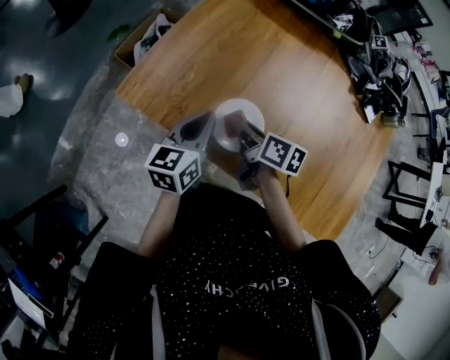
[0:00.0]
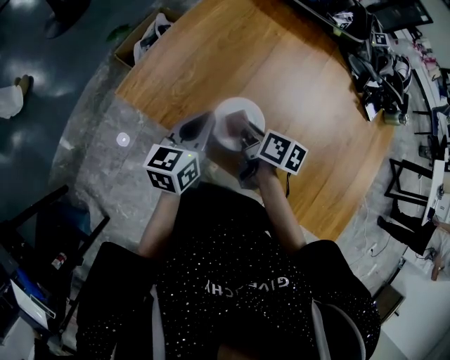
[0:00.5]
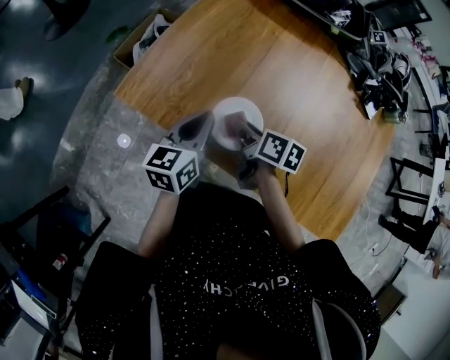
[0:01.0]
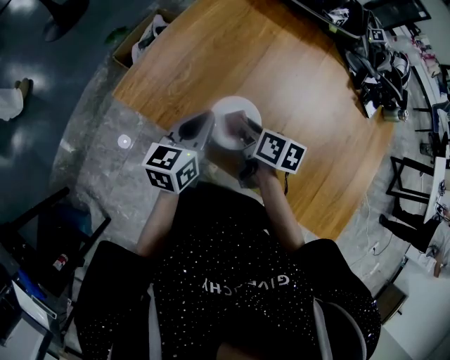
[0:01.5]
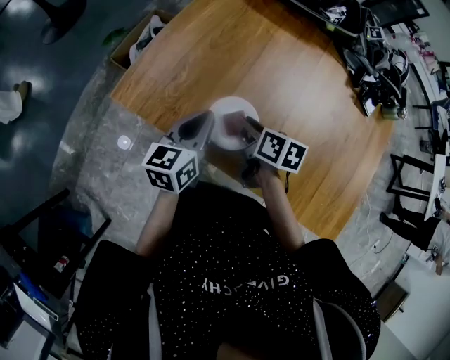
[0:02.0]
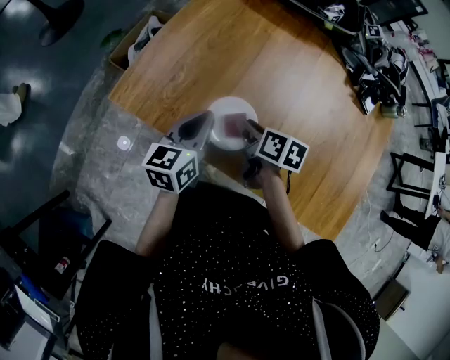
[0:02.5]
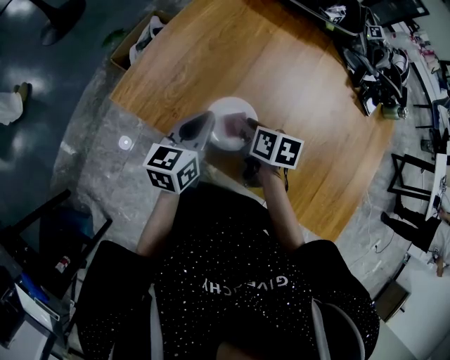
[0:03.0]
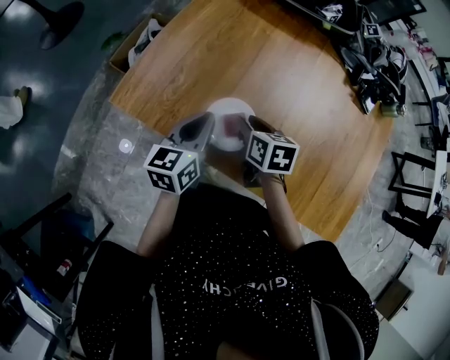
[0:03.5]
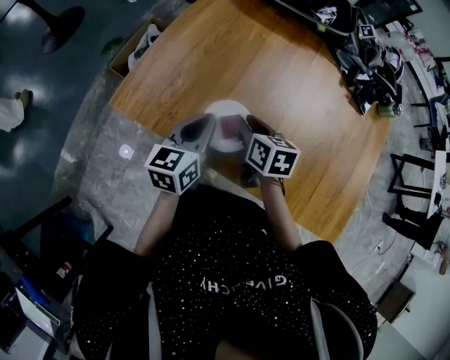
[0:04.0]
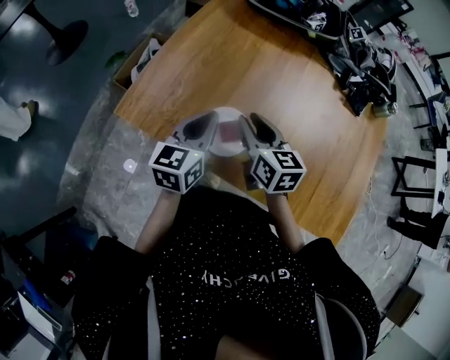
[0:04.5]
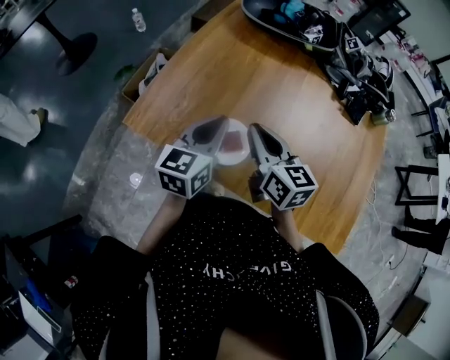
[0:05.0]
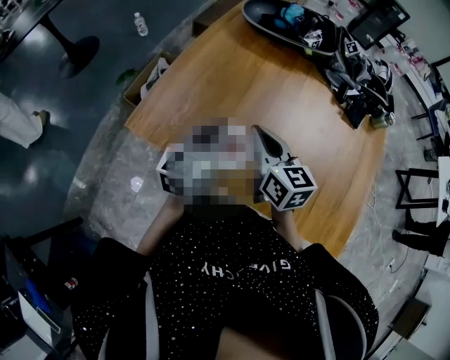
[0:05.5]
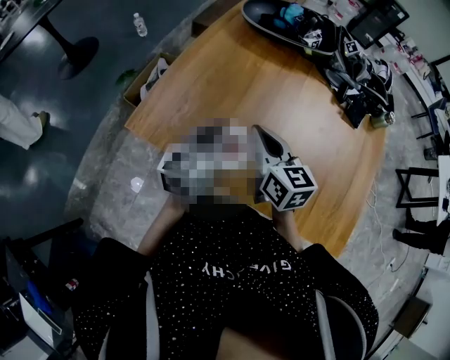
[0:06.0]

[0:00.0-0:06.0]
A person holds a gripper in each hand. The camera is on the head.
0:00.0 to 0:02.0: There are only small adjustments of the grippers.
0:02.0 to 0:04.0: The grippers move only a little.
0:04.0 to 0:06.0: The left gripper shifts about 10 cm upward, while the right gripper travels upward by some 15 cm, turns by approximately 30 degrees, and closes its fingers.

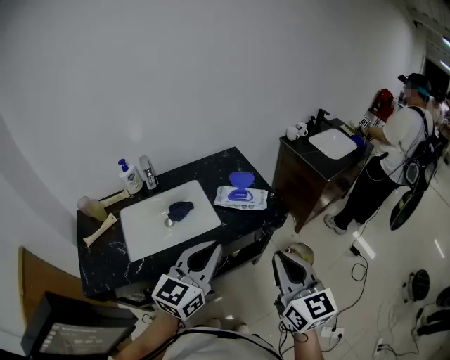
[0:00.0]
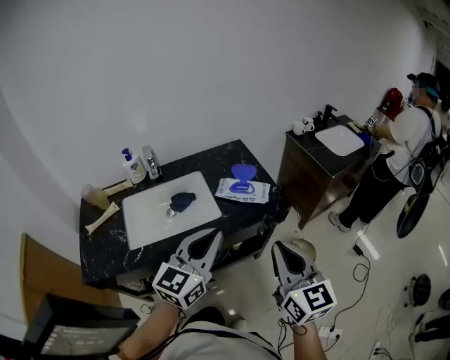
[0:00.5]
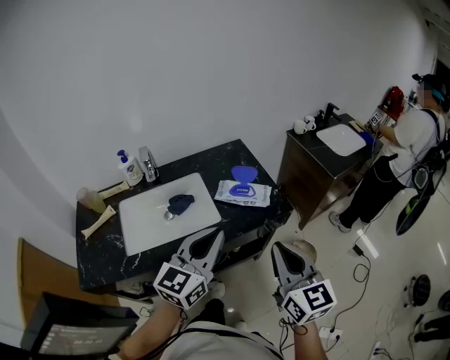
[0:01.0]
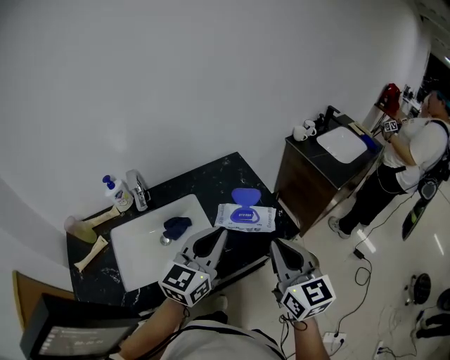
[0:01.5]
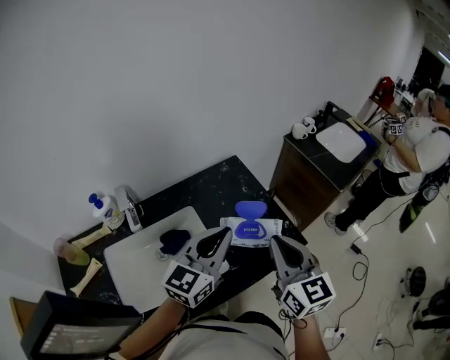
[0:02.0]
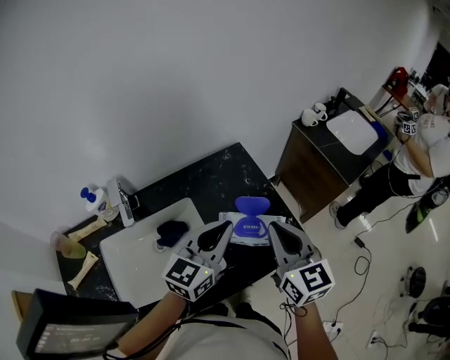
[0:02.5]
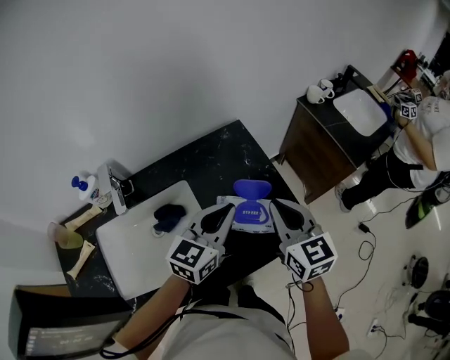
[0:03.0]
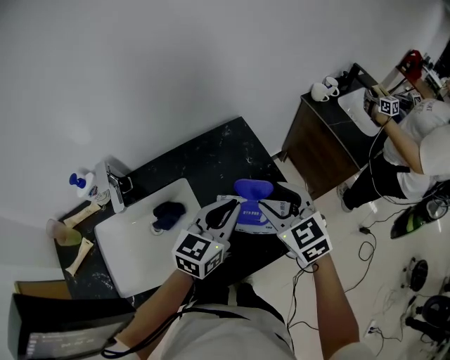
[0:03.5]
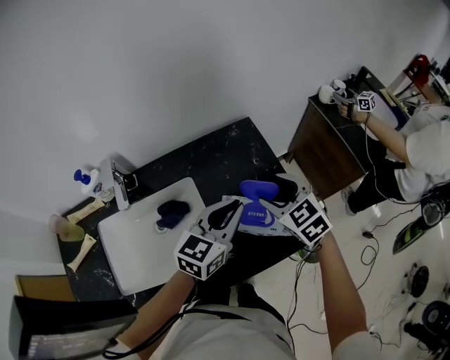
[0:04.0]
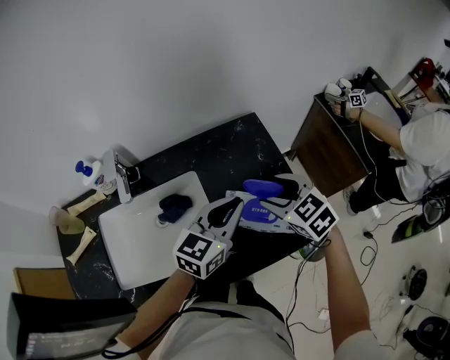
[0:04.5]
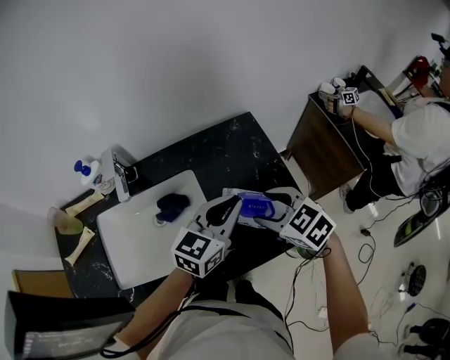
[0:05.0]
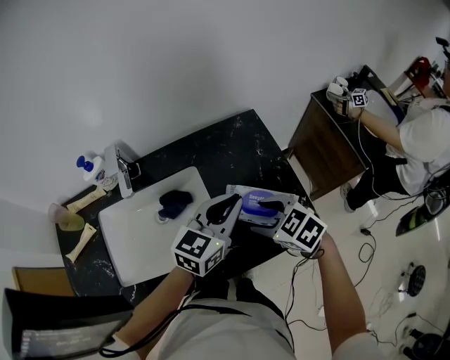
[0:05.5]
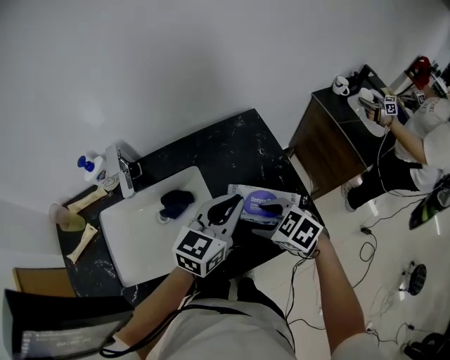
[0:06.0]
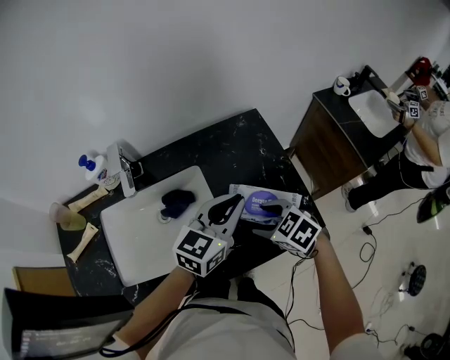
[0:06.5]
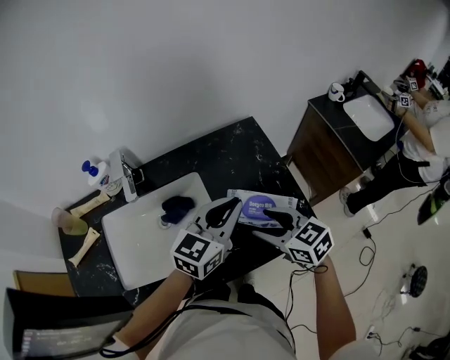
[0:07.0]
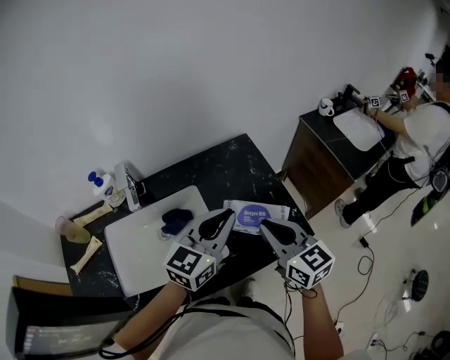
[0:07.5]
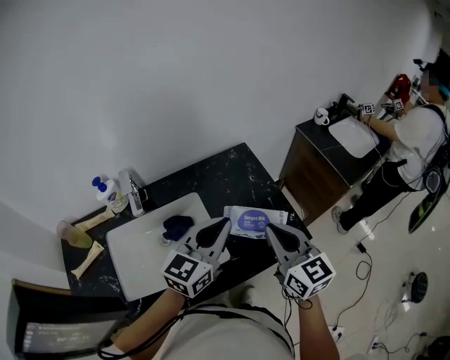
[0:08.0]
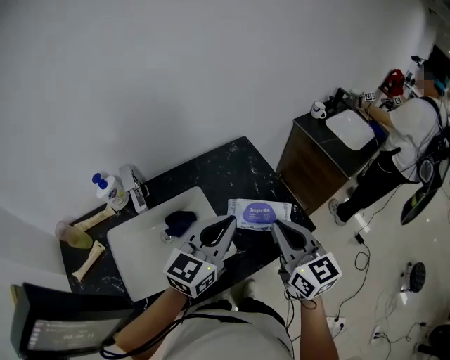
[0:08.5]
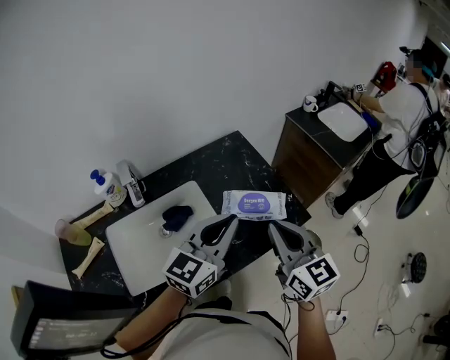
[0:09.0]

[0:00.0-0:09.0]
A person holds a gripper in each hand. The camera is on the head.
0:00.0 to 0:02.0: Both grippers travel together forward, some 25 cm.
0:02.0 to 0:04.5: The left gripper moves downward and forward, about 15 cm. The right gripper goes approximately 20 cm downward and forward, angles its fingers downward, by roughly 30 degrees, and opens up.
0:04.5 to 0:07.0: The right gripper moves backward, about 10 cm.
0:07.0 to 0:09.0: The left gripper shifts about 10 cm backward and upward. Meanwhile the right gripper heads upward and backward, covering some 15 cm, rotates roughly 40 degrees, and closes its fingers.

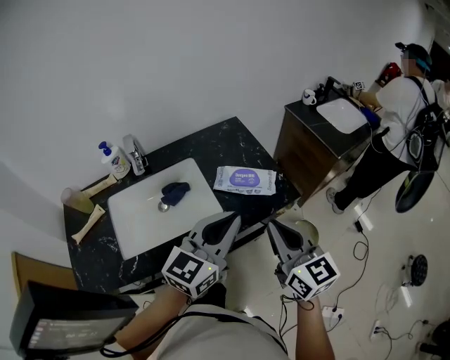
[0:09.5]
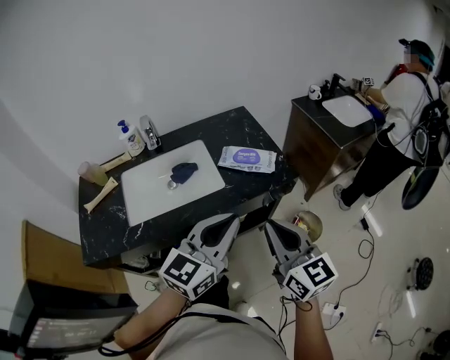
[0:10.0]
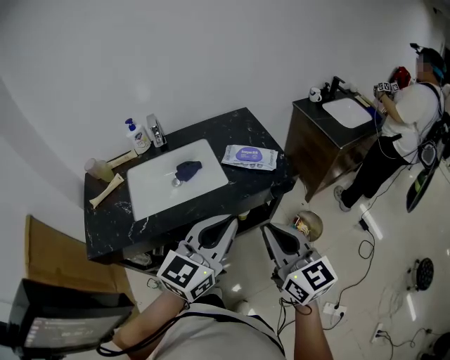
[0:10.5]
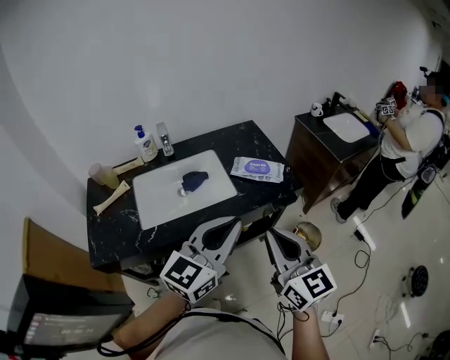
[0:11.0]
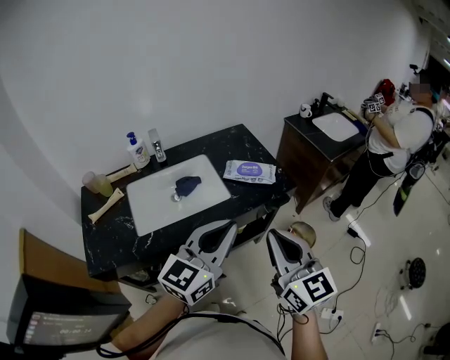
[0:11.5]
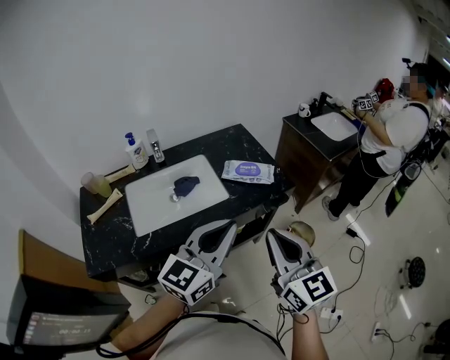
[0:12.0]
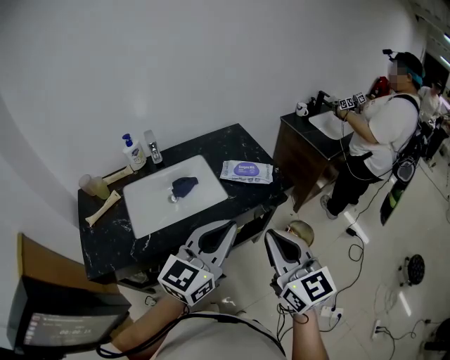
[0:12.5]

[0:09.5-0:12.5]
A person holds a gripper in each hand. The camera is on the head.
0:09.5 to 0:11.0: The two grippers go approximately 15 cm backward.
0:11.0 to 0:12.5: There are only small adjustments of the grippers.

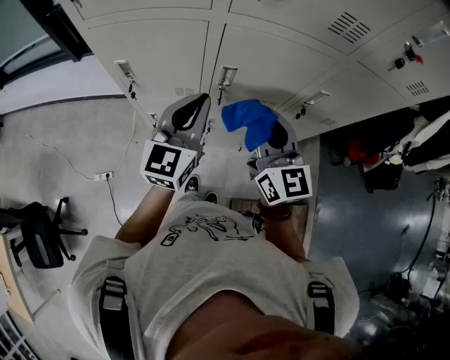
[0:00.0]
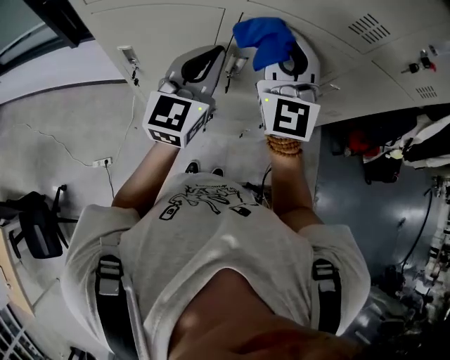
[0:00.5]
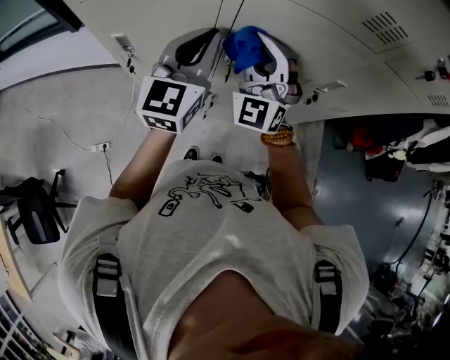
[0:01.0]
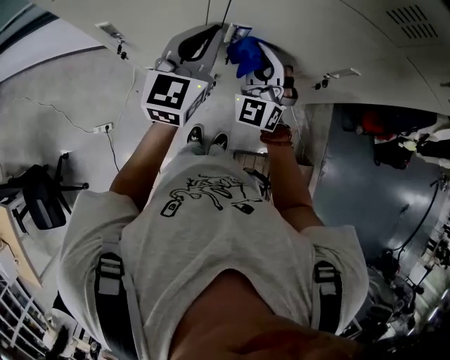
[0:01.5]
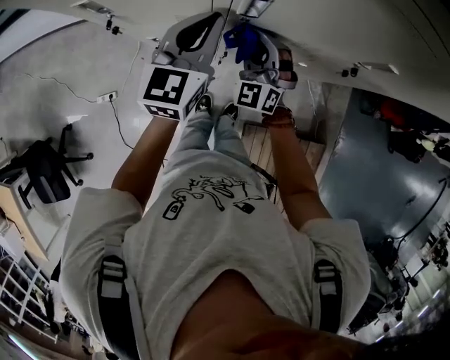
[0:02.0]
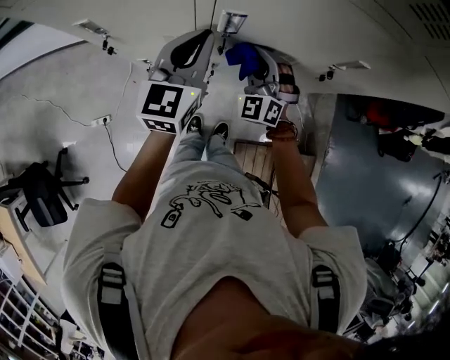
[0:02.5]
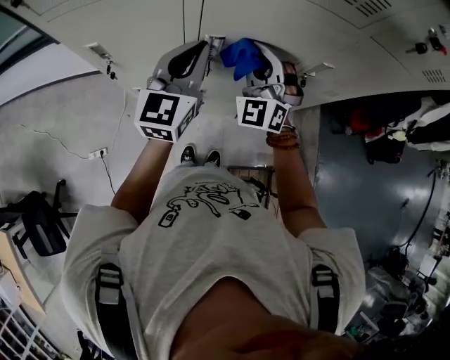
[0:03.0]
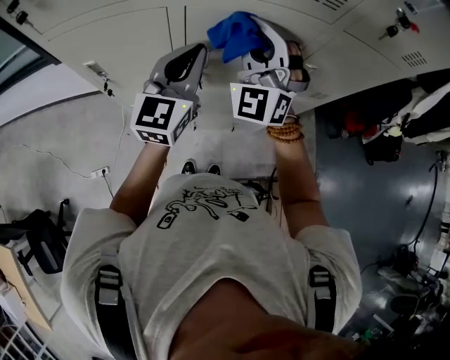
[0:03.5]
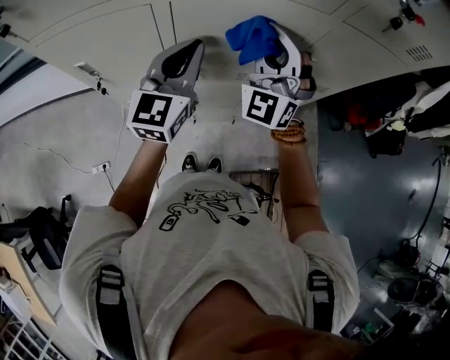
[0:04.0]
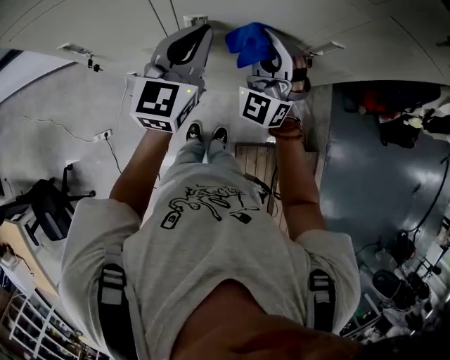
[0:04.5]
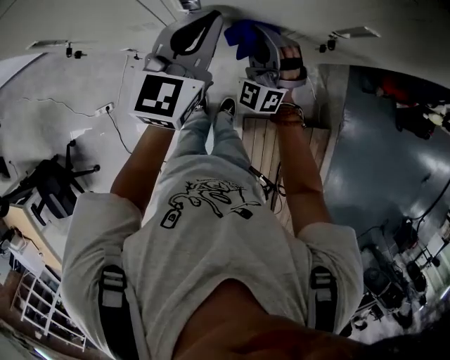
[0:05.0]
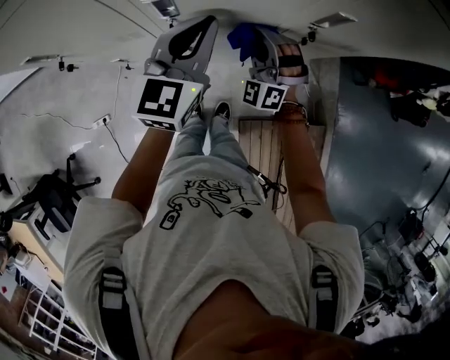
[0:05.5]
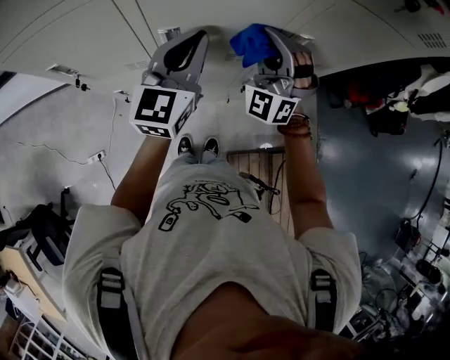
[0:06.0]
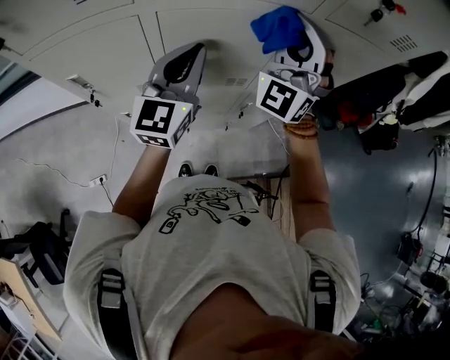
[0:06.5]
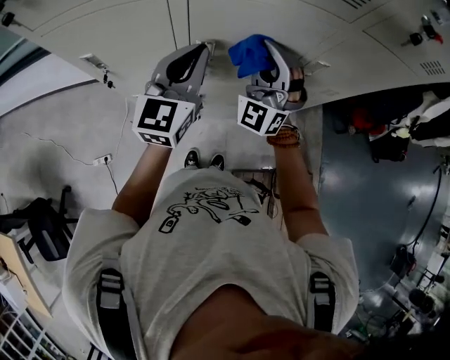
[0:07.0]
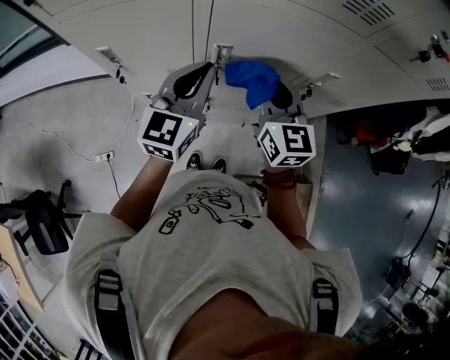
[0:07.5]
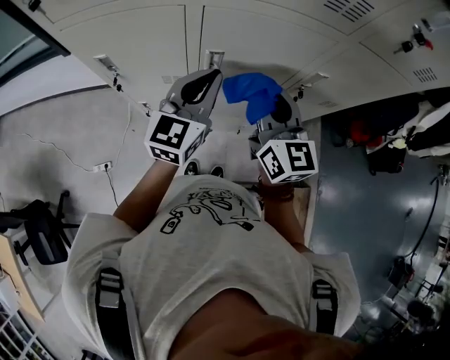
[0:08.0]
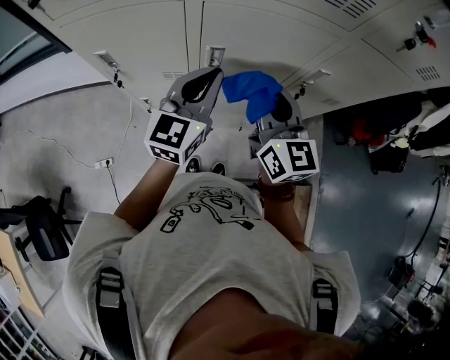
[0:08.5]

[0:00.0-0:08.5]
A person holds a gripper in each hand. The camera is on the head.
0:00.0 to 0:02.0: The right gripper is displaced downward and forward by about 30 cm, and twists some 50 degrees counterclockwise, seen from behind; the left gripper shifts some 15 cm downward and forward.
0:02.0 to 0:04.0: The right gripper moves upward and to the right, approximately 30 cm, and turns by roughly 30 degrees. The left gripper goes some 15 cm upward and to the right.
0:04.0 to 0:06.5: The right gripper moves to the right, roughly 5 cm, and travels downward and back again, roughly 30 cm each way. The left gripper reaches about 15 cm downward, then returns.
0:06.5 to 0:08.5: The right gripper moves downward, backward and to the left, some 15 cm, and rotates around the line of its fingers by approximately 70 degrees, clockwise from behind, while the left gripper changes place by some 5 cm.
